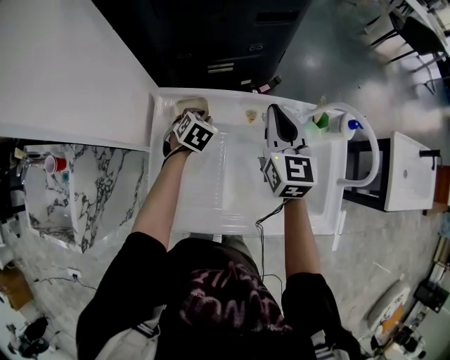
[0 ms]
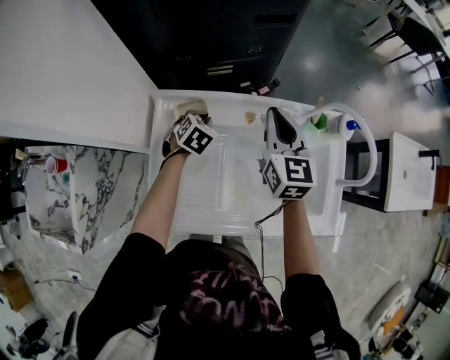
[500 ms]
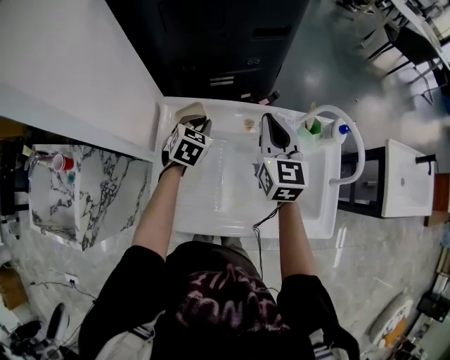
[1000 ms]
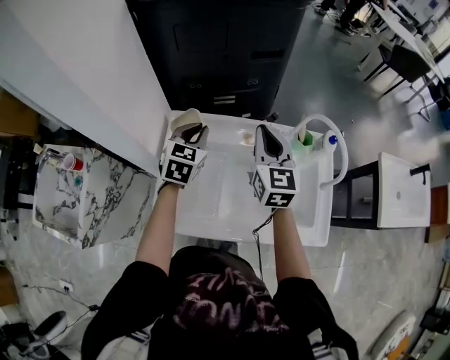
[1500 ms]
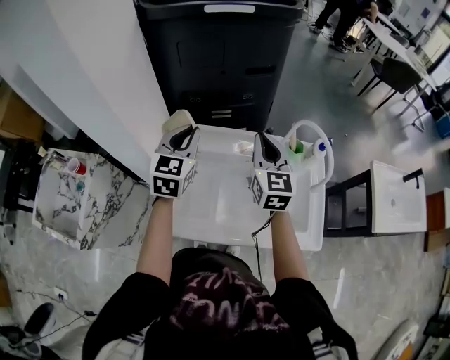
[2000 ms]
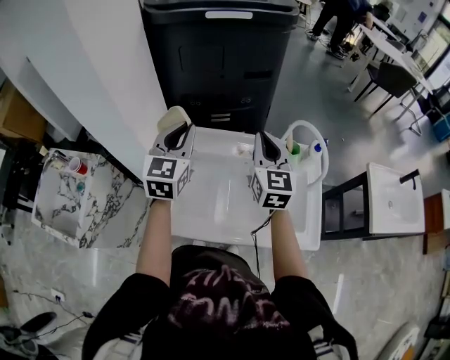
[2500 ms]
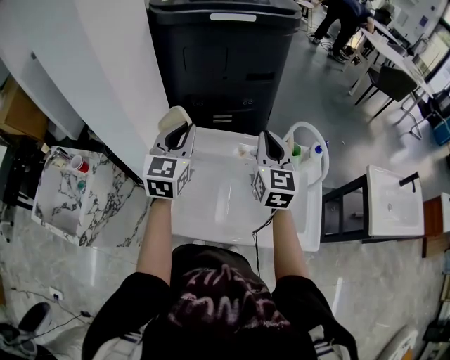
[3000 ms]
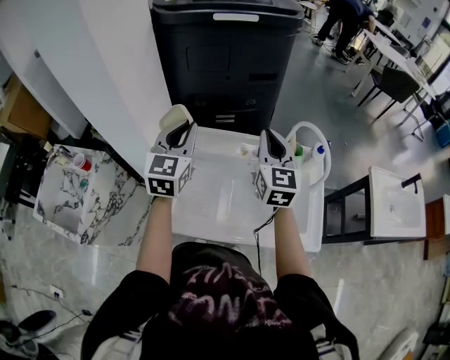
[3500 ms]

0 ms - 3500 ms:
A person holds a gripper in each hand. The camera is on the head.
0 ms - 2000 ms: The right gripper is displaced upward and backward by some 15 cm. Meanwhile the left gripper heads upward, covering approximately 30 cm, and angles its fingers upward, by some 40 degrees.
2000 ms - 3500 ms: The left gripper changes place by approximately 5 cm.

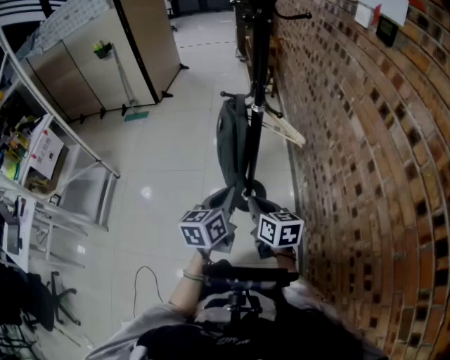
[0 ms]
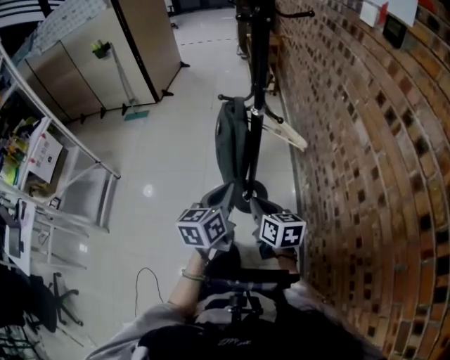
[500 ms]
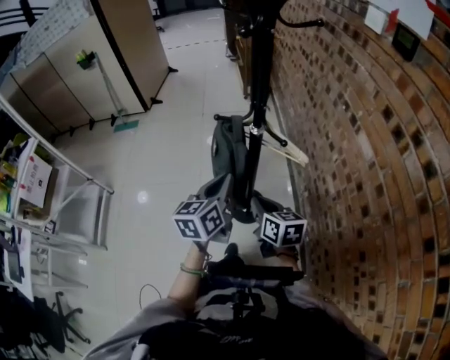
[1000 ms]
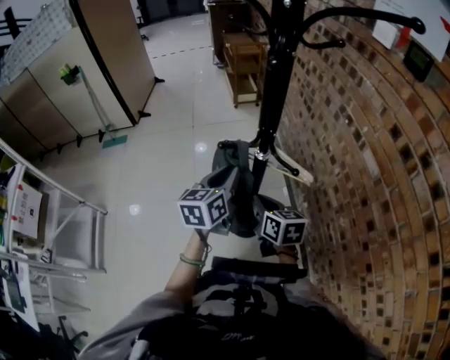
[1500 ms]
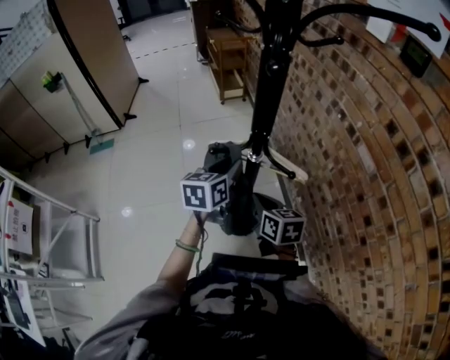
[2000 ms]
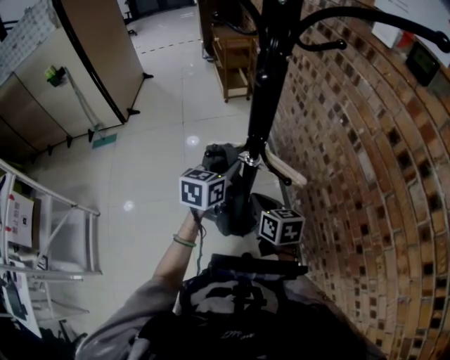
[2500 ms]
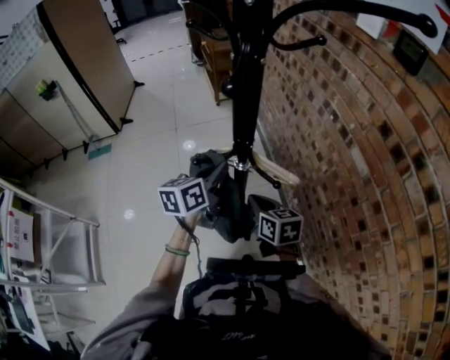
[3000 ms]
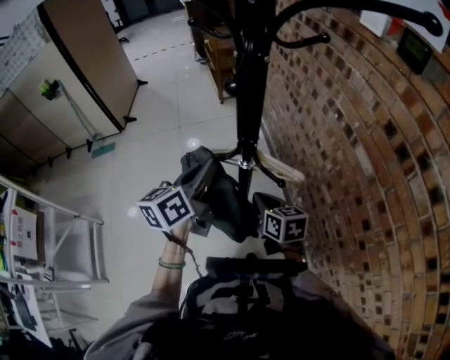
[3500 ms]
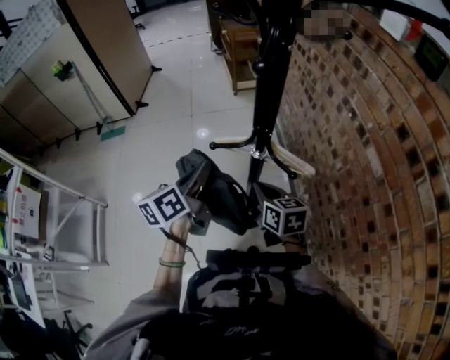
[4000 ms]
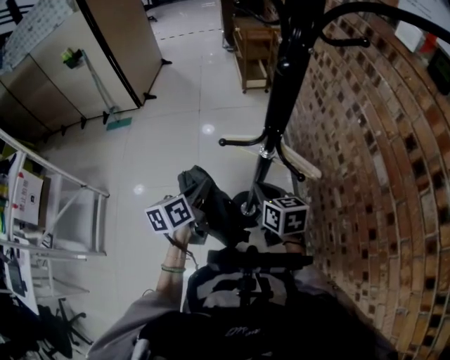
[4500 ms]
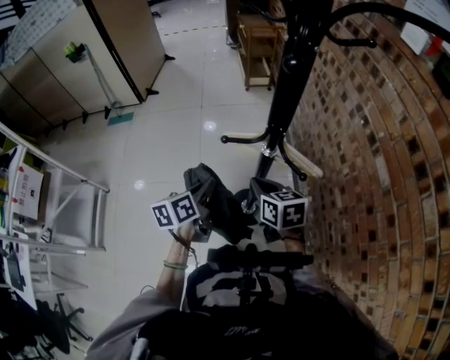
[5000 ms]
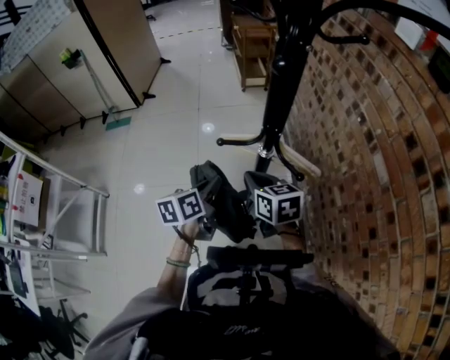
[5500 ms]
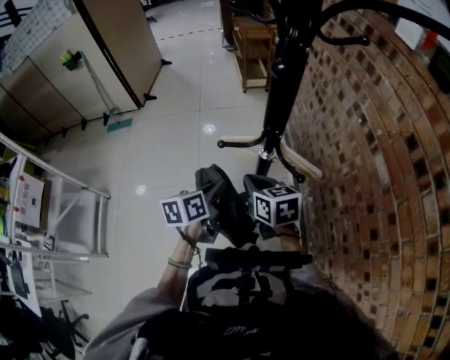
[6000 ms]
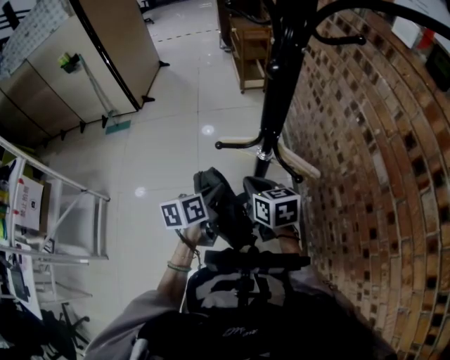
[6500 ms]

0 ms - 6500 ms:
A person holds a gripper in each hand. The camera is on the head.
0 ms - 2000 ms: The grippers both shift forward by some 25 cm. The left gripper opens up.
2000 ms - 4500 ms: The left gripper travels to the left and backward by approximately 15 cm, rotates some 30 degrees, and closes.
4500 ms - 6500 ms: The left gripper shifts by approximately 5 cm.

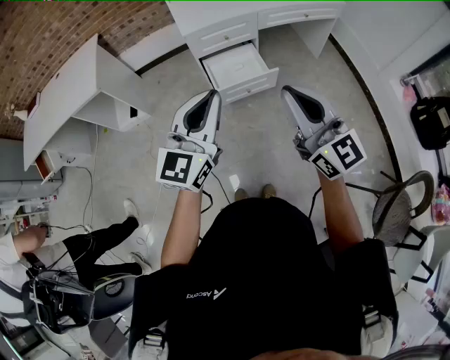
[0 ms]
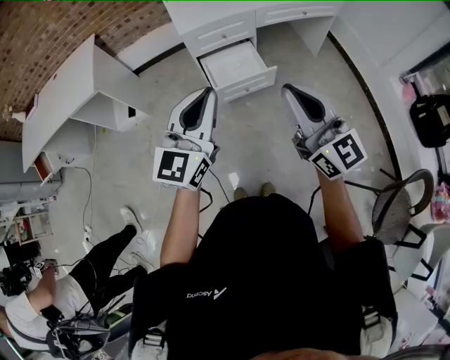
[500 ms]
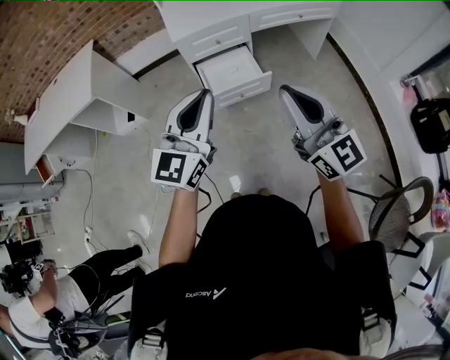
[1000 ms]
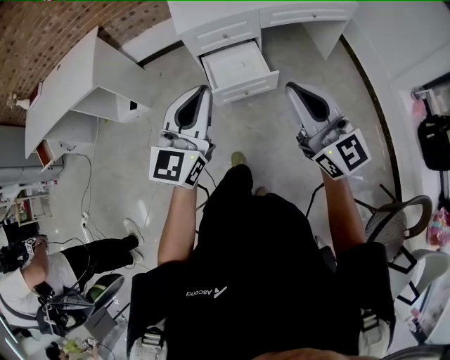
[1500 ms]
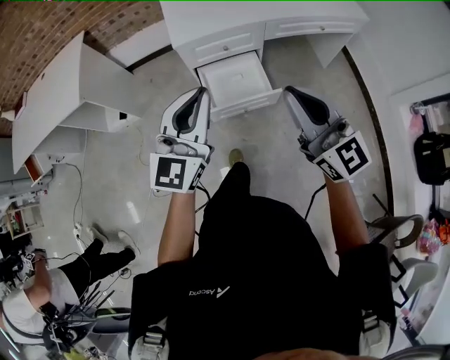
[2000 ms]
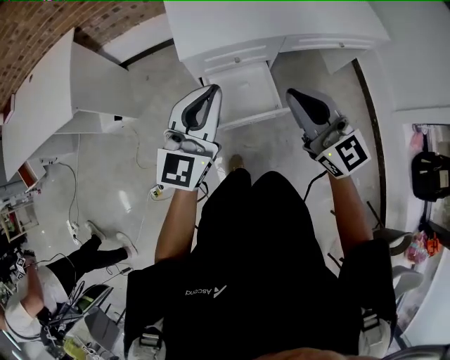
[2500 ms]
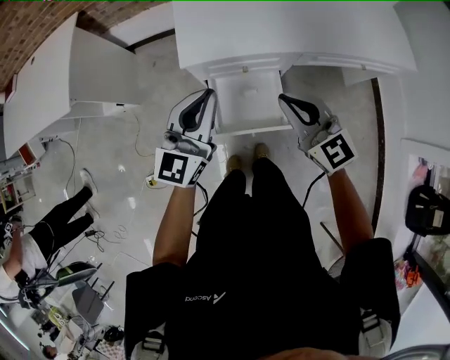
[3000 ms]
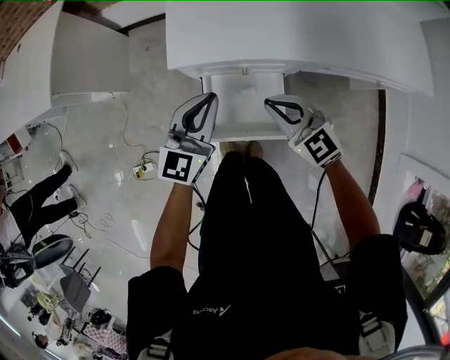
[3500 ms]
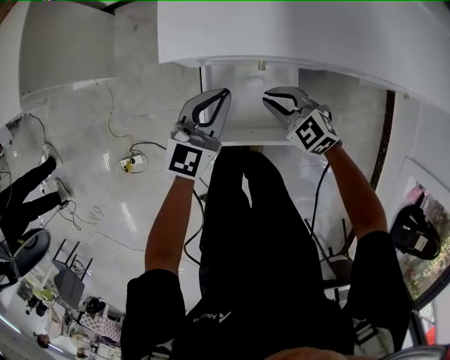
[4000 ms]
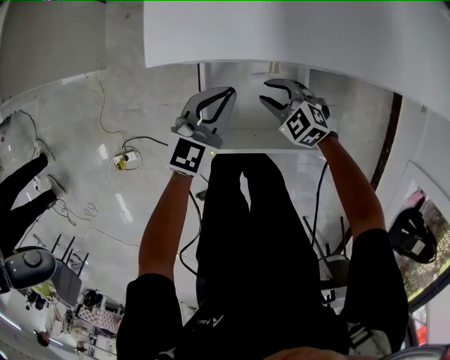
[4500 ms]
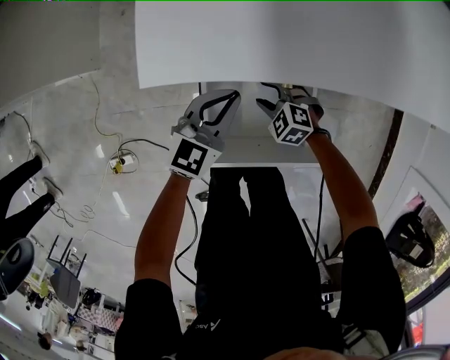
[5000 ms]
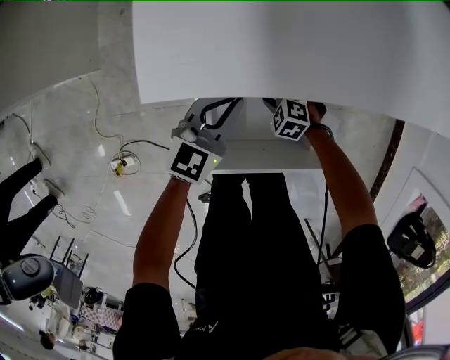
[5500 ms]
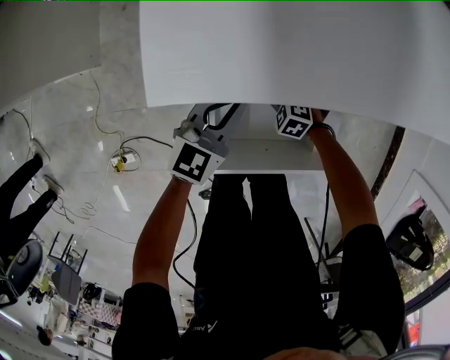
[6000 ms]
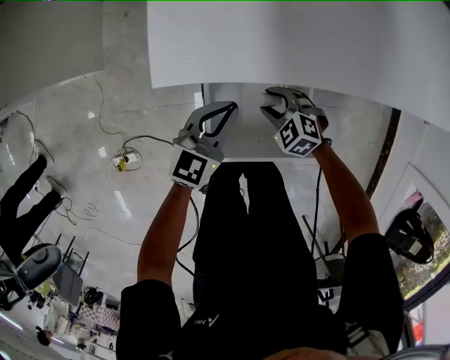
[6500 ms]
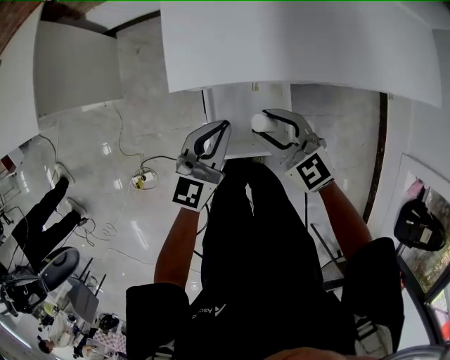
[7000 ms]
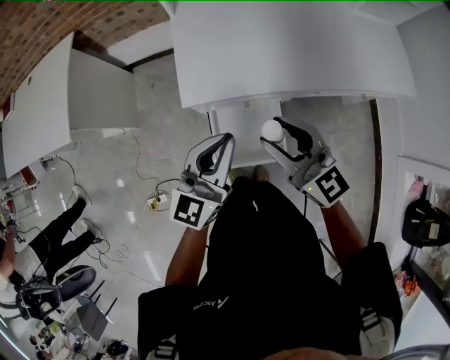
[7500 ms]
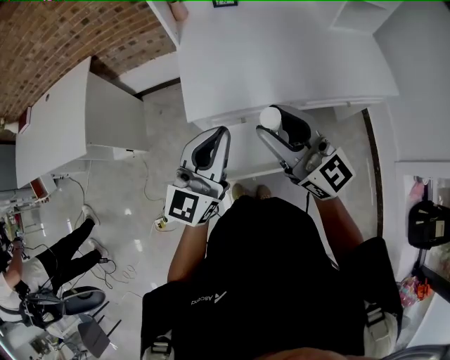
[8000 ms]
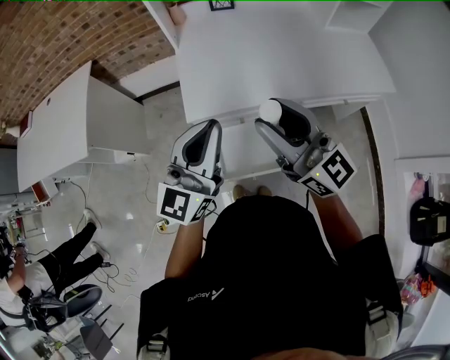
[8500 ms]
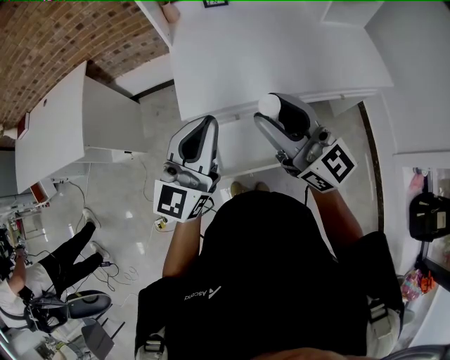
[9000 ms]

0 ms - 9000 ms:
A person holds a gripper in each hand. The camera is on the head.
0 ms - 2000 ms: The grippers both shift forward by about 20 cm.
2000 ms - 4500 ms: The grippers both shift downward and forward by about 70 cm. The right gripper tips its fingers downward by about 60 degrees, and opens up. The left gripper changes its angle by approximately 30 degrees.
4500 ms - 7000 ms: The right gripper travels upward by roughly 30 cm, and swivels some 30 degrees; the left gripper travels upward by roughly 20 cm.
7000 ms - 9000 ms: Both grippers travel together upward, some 35 cm. The left gripper rotates some 30 degrees. The right gripper angles its fingers upward, by approximately 40 degrees.

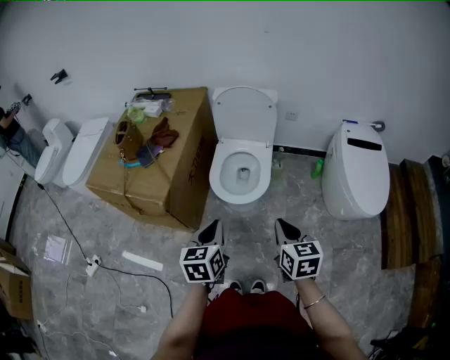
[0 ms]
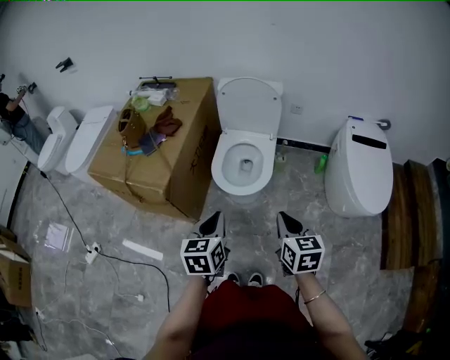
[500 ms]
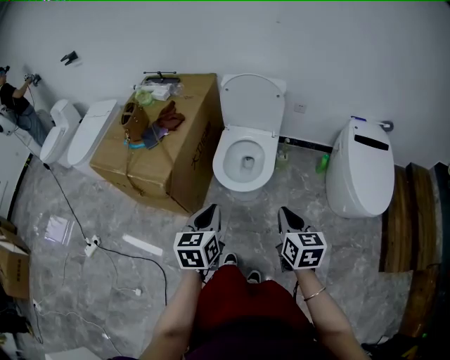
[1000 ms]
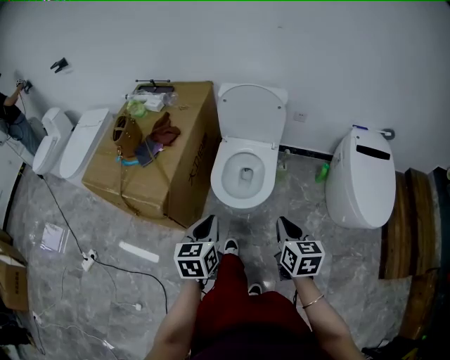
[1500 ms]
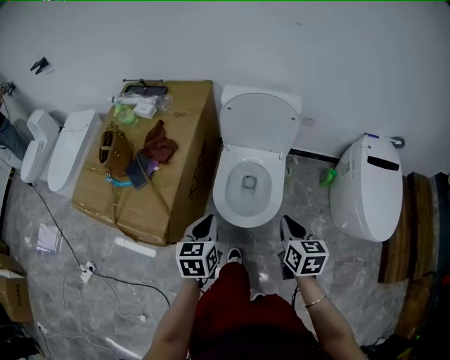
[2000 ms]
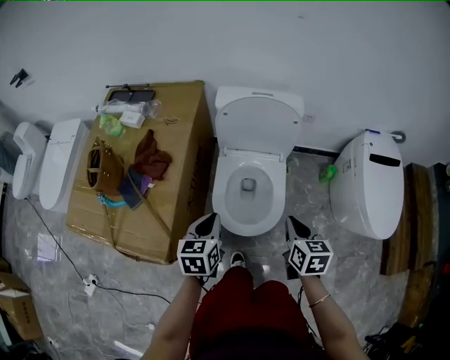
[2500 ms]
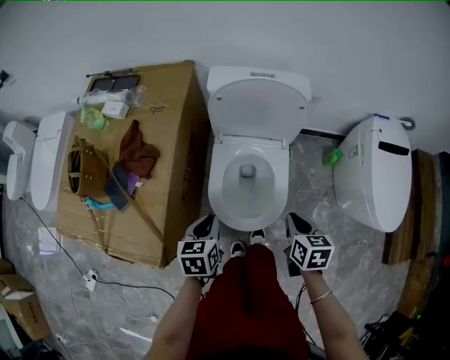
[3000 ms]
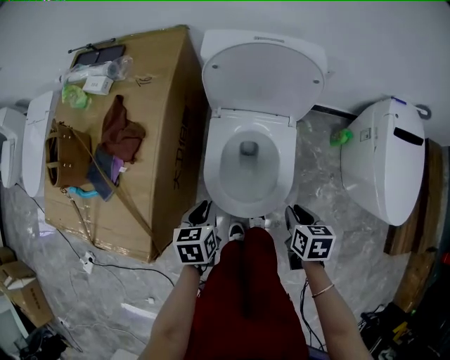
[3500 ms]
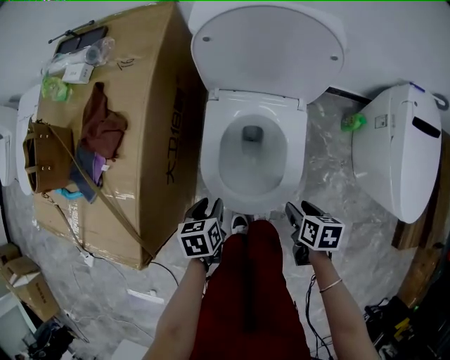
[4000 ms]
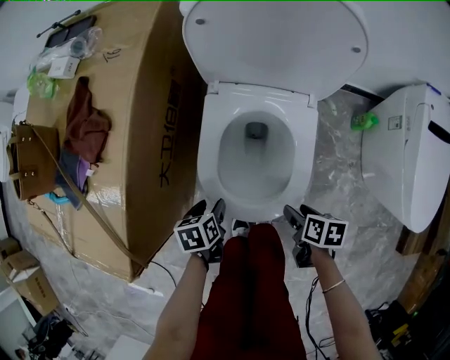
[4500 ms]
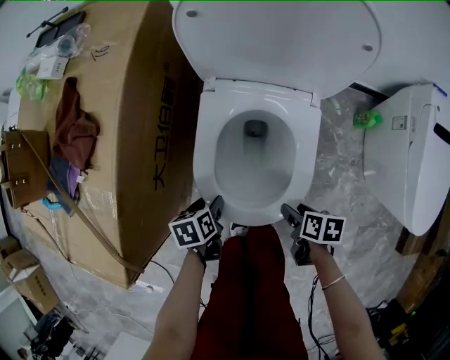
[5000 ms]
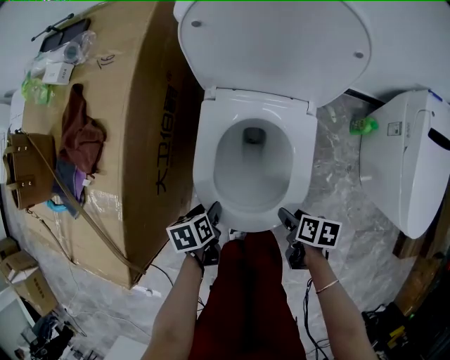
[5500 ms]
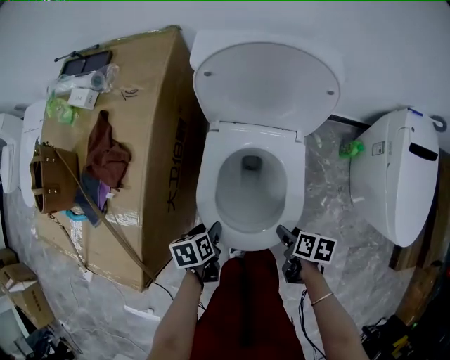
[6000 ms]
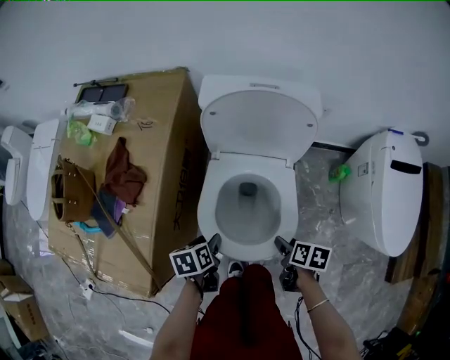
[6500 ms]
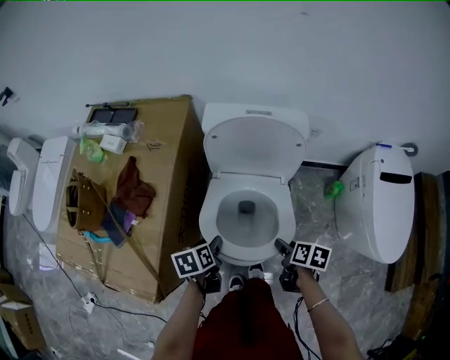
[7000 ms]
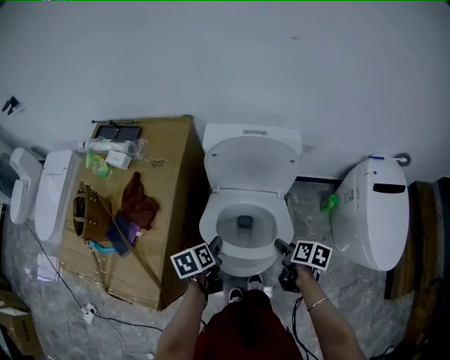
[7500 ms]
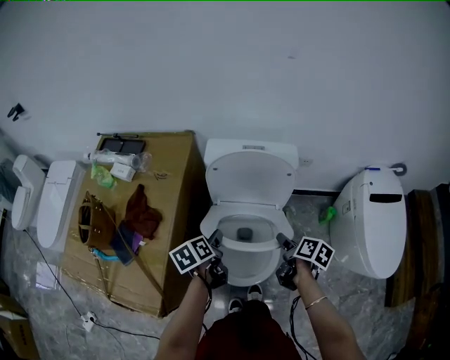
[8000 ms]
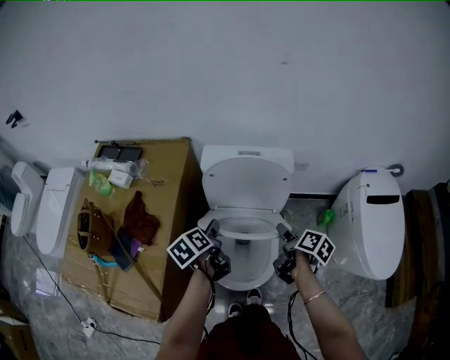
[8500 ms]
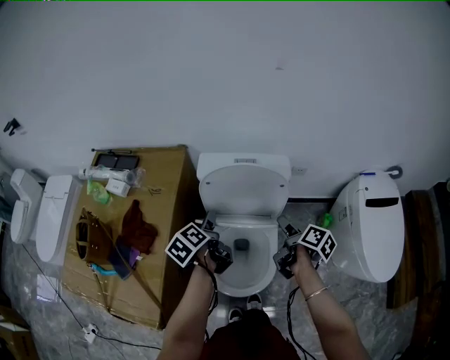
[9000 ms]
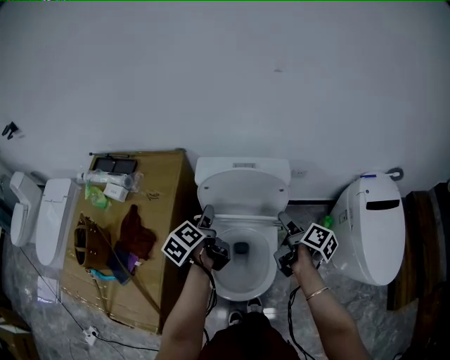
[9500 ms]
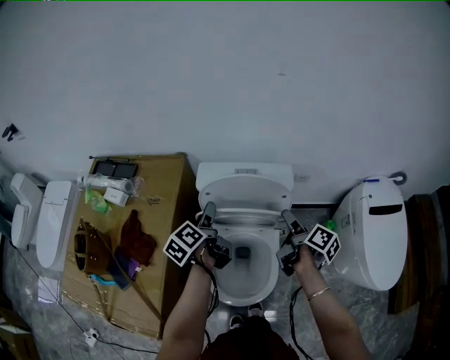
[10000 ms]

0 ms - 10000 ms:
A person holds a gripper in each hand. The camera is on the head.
0 ms - 2000 ms: Both grippers travel together forward, some 20 cm.
2000 ms - 4000 ms: The grippers both shift downward by approximately 30 cm. The left gripper rotates roughly 30 degrees, and opens, while the right gripper turns by about 40 degrees, and opens its fingers.
4000 ms - 6000 ms: The left gripper reaches roughly 10 cm downward, then returns. Meanwhile the right gripper reaches about 10 cm downward, then returns.
6000 ms - 8000 ms: Both grippers travel together upward and forward, about 25 cm. The left gripper rotates some 20 degrees. The right gripper changes its angle by roughly 30 degrees.
8000 ms - 10000 ms: The two grippers go roughly 15 cm forward and upward. The left gripper turns by some 30 degrees, while the right gripper turns by approximately 30 degrees.
